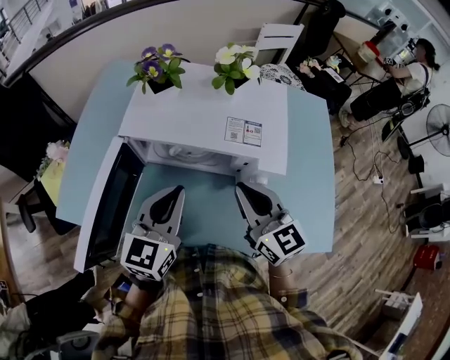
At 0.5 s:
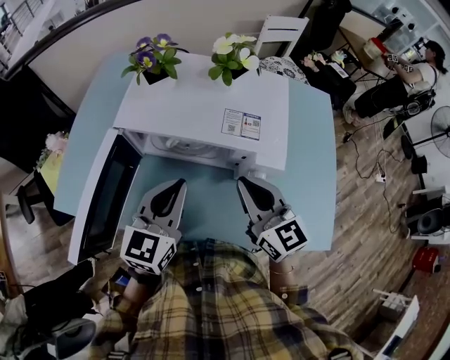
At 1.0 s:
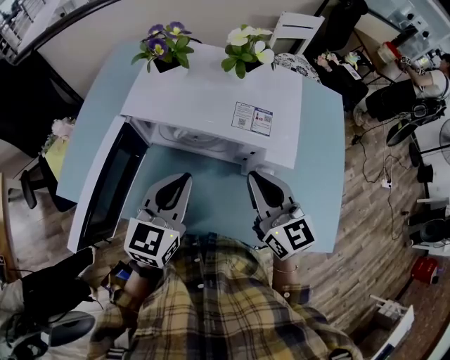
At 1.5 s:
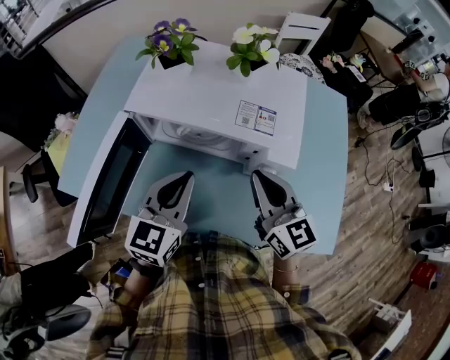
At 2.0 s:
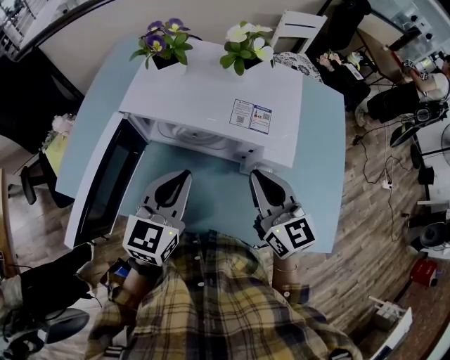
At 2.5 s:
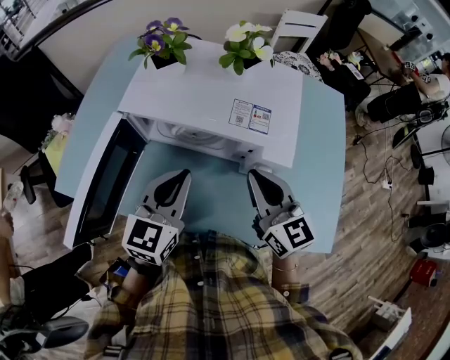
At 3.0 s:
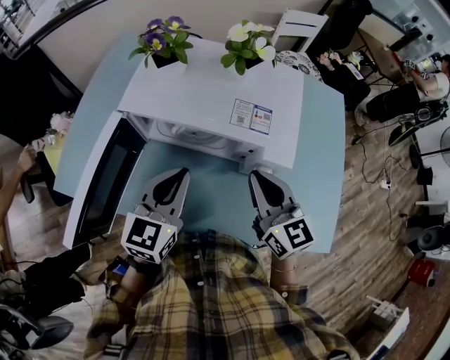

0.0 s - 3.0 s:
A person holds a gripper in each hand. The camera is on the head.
0.0 s - 1.5 s: There are only small adjustments of the grippers.
1.5 s - 3.0 s: The two grippers keep their place.

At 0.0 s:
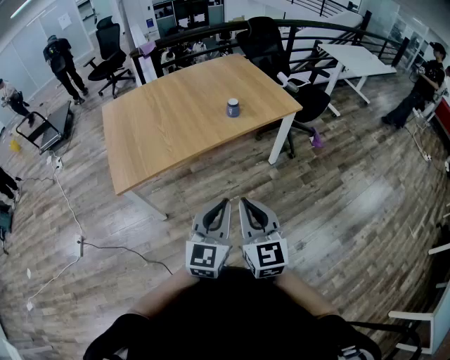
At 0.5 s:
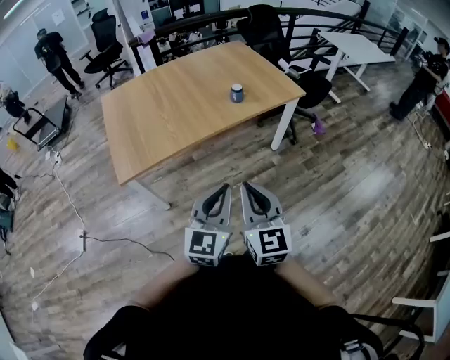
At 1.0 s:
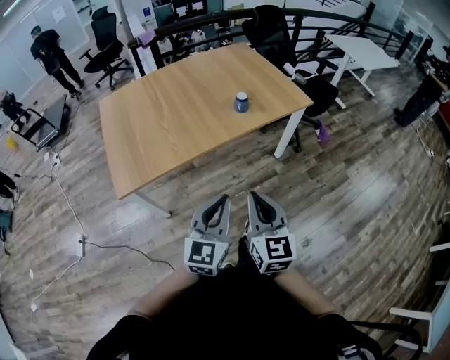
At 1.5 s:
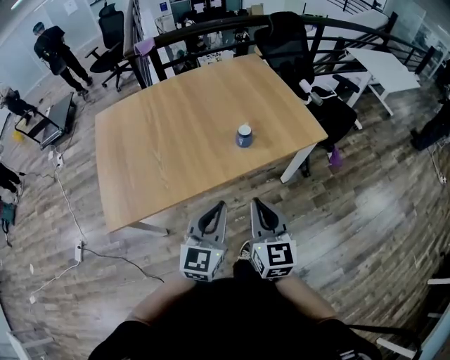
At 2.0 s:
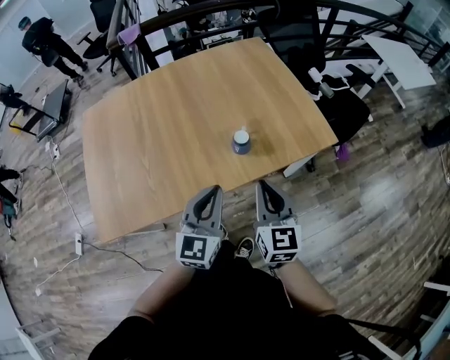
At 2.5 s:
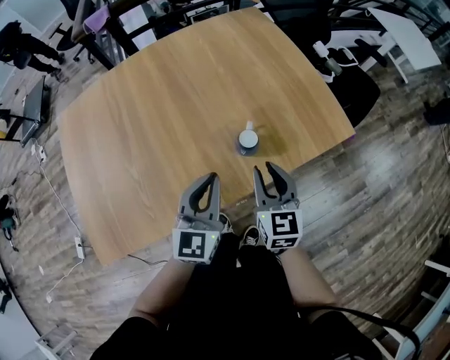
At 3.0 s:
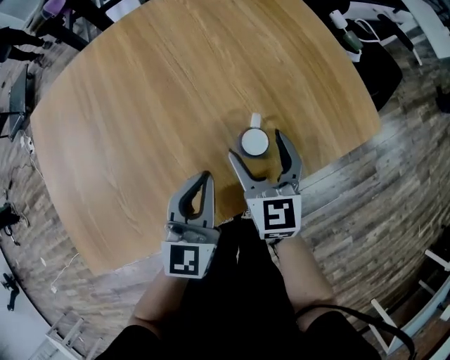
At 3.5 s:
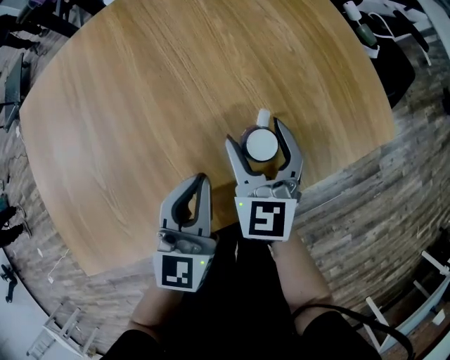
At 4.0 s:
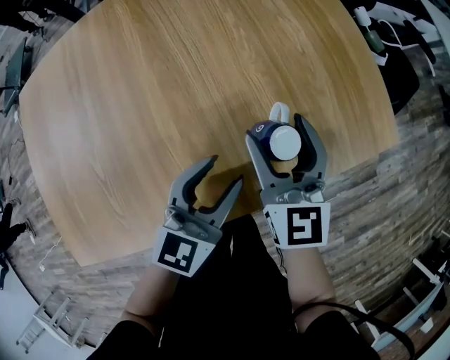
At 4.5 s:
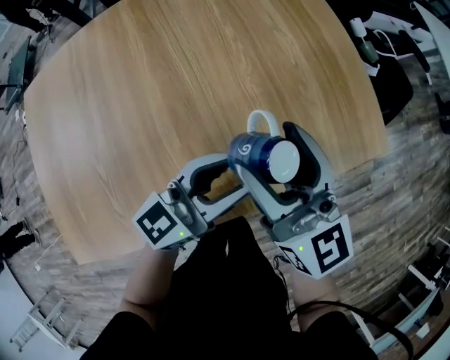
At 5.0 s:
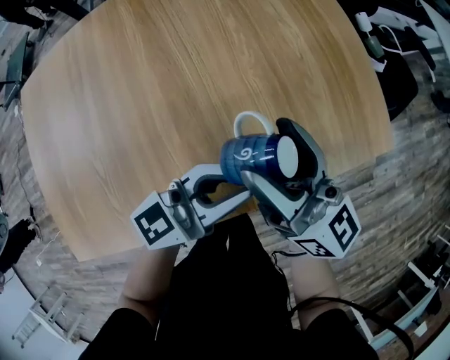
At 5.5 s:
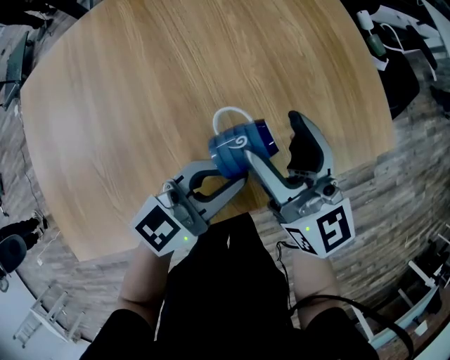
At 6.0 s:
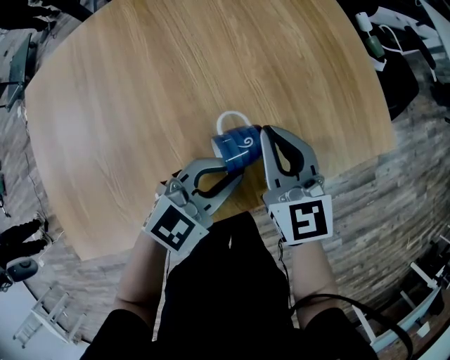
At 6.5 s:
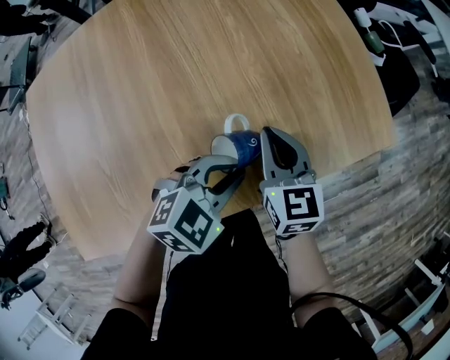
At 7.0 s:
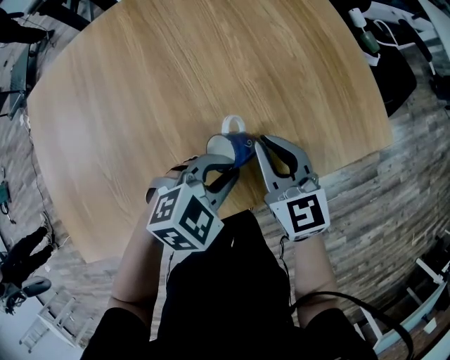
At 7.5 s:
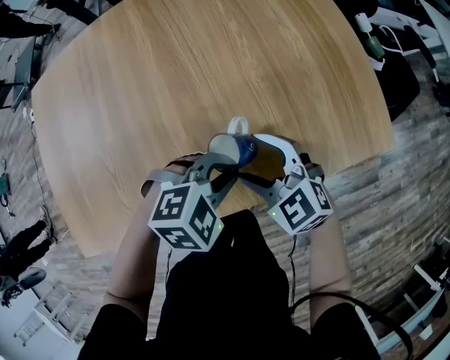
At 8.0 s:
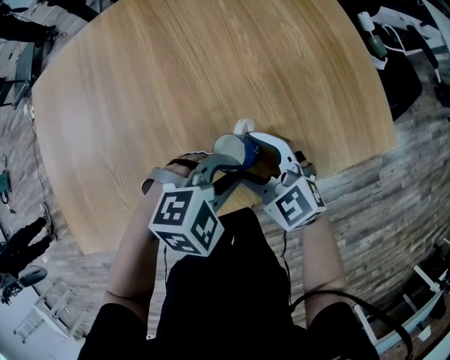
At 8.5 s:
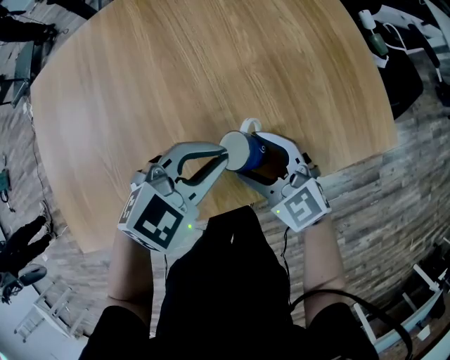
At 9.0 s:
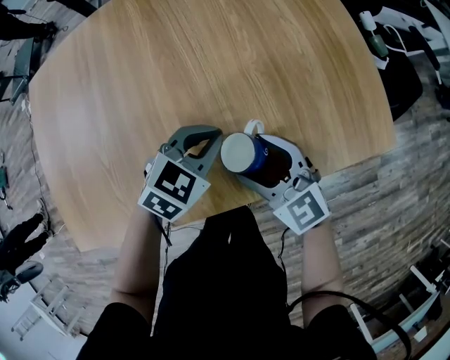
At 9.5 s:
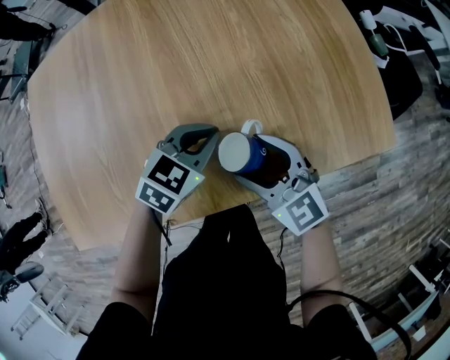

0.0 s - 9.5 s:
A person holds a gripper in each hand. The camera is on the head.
0.0 s - 2.0 s: The two grippers travel together, forward, some 50 cm.
2.0 s - 4.0 s: The left gripper heads downward and forward, covering some 30 cm, and opens up; the right gripper is displaced forward and downward by roughly 35 cm, and opens its fingers.
4.0 s - 5.5 s: The right gripper is displaced upward by approximately 5 cm, and rotates approximately 20 degrees, while the left gripper swivels roughly 30 degrees, and closes its fingers.
5.5 s - 7.5 s: The left gripper tilts its fingers roughly 50 degrees downward. The right gripper heads downward, covering some 10 cm, points its fingers some 30 degrees further downward, and closes and opens again.
7.5 s - 9.5 s: The left gripper shifts by some 10 cm, and rotates some 40 degrees.

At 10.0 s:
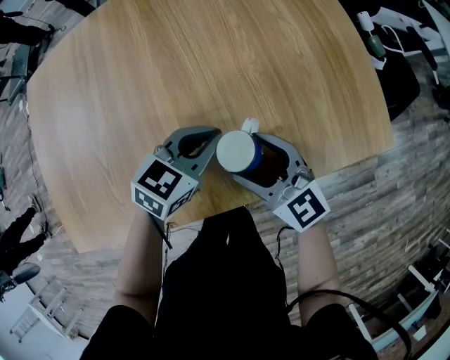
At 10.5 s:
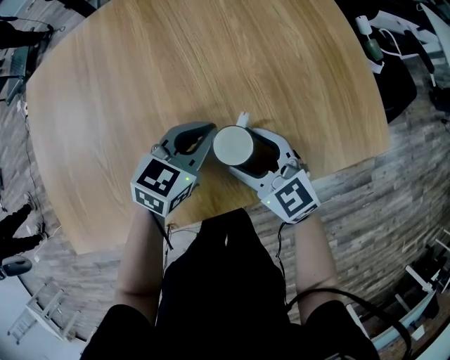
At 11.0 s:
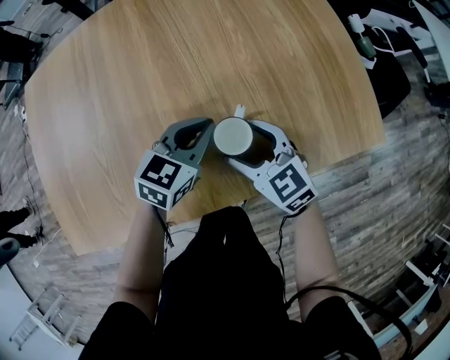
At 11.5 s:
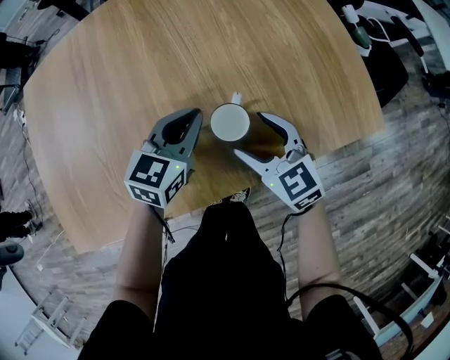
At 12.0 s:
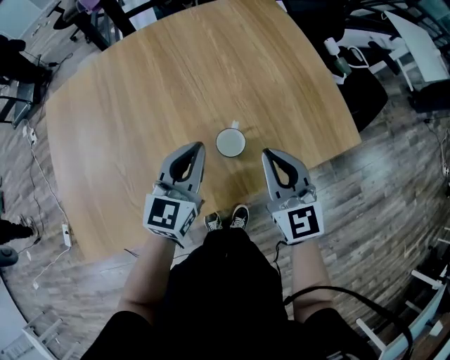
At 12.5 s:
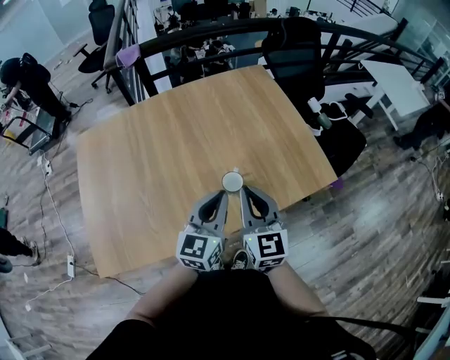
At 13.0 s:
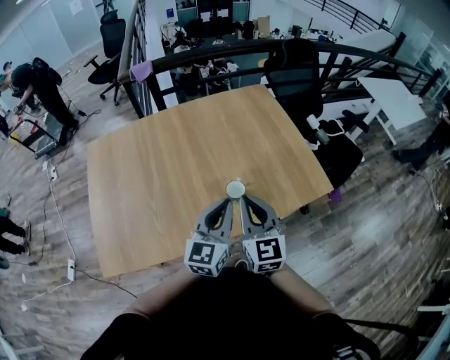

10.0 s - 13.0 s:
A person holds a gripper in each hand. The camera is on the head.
10.0 s - 11.5 s: The grippers stay close to where they were, moving slightly.
11.5 s - 13.0 s: The left gripper moves upward and backward, approximately 30 cm, and rotates about 30 degrees, while the right gripper shifts approximately 30 cm upward, swivels approximately 40 degrees, and closes its fingers.

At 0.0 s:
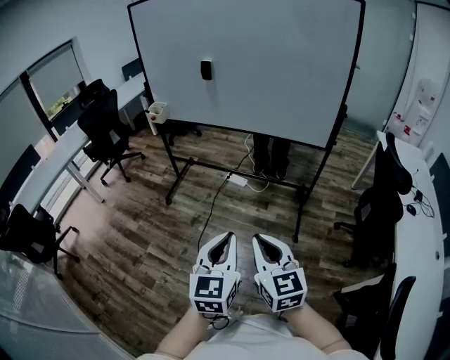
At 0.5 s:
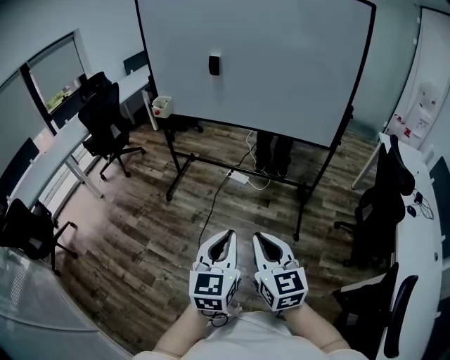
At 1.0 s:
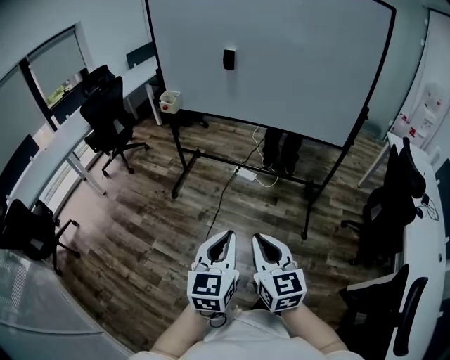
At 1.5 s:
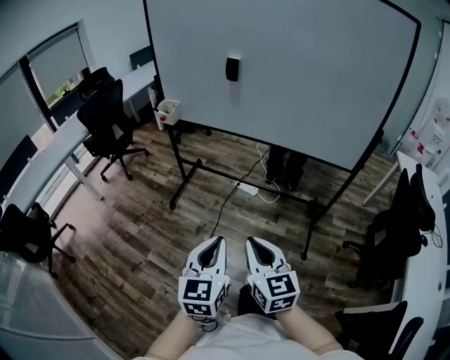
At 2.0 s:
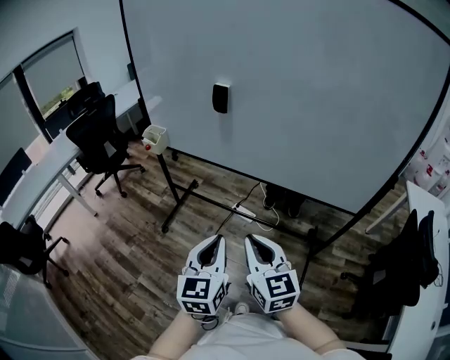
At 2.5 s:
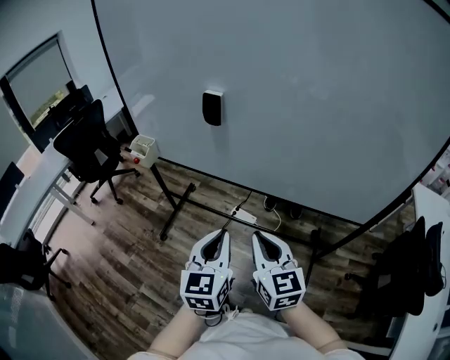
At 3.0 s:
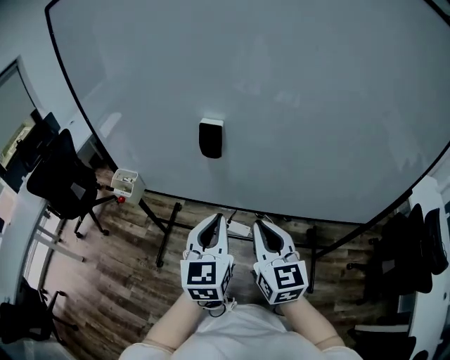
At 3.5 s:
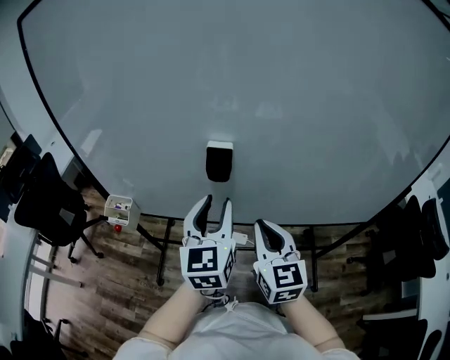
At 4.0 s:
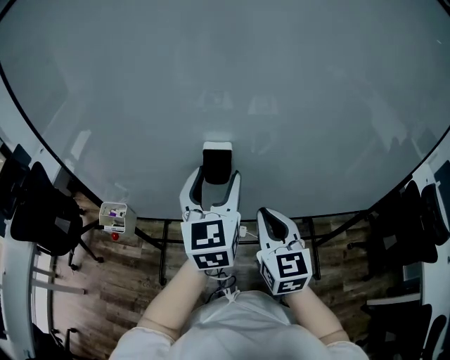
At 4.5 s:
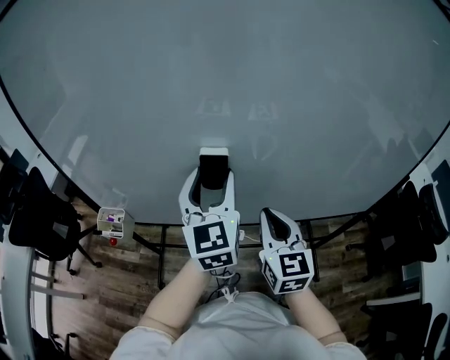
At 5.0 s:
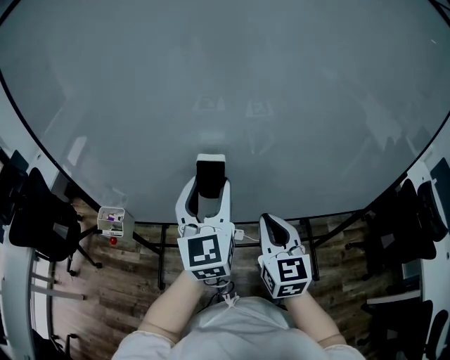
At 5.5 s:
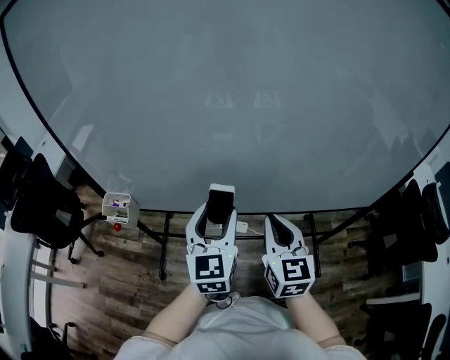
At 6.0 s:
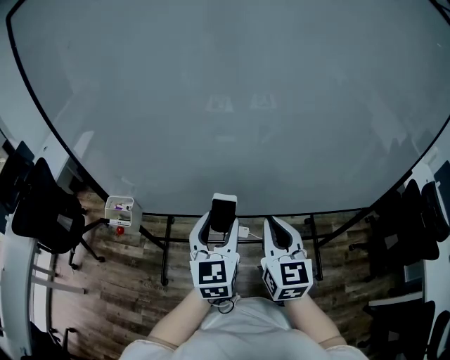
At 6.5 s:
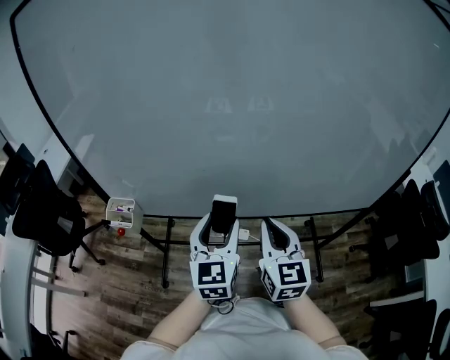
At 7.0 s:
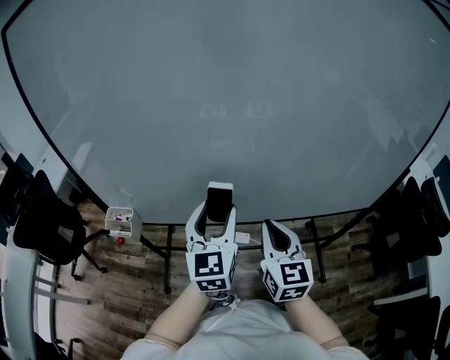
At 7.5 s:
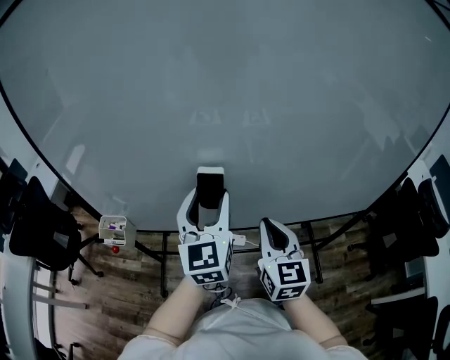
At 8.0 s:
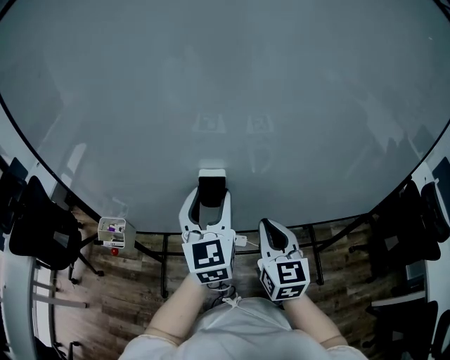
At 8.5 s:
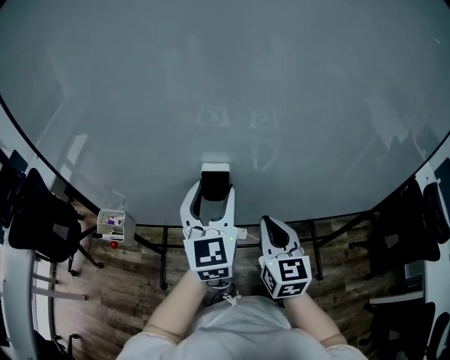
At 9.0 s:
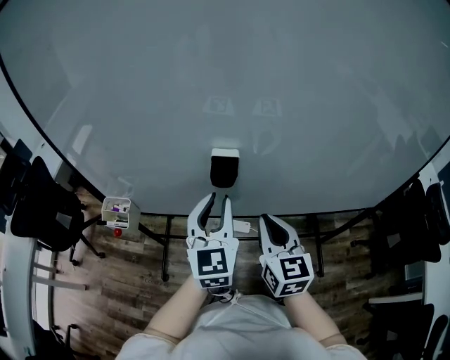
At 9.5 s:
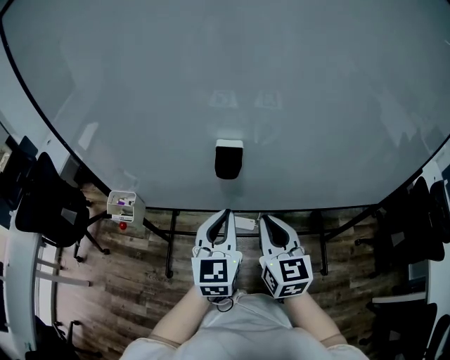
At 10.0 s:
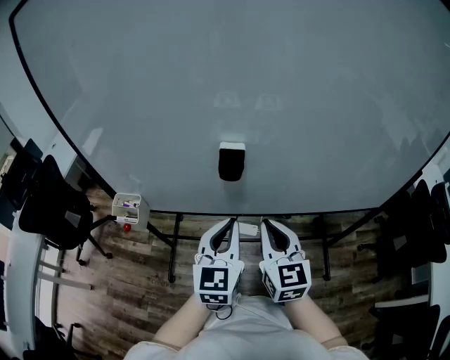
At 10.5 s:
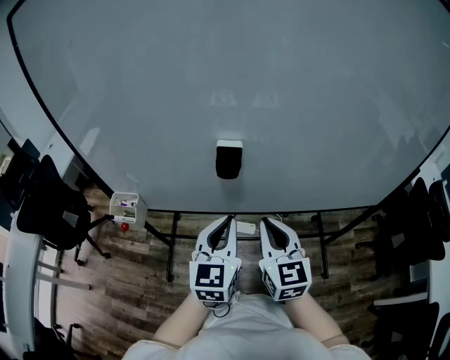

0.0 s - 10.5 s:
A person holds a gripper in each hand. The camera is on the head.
0.0 s - 2.0 s: Both grippers travel together forward, roughly 35 cm.
2.0 s - 4.0 s: Both grippers travel together forward, roughly 35 cm. The right gripper turns by about 30 degrees. The left gripper opens its fingers.
4.0 s - 6.5 s: The left gripper shifts approximately 15 cm downward and backward.
6.5 s - 8.5 s: The right gripper is displaced forward by about 5 cm; the left gripper heads forward and upward, covering approximately 10 cm.
8.5 s - 10.5 s: The left gripper heads backward and downward, covering roughly 15 cm, and closes. Meanwhile the right gripper is displaced backward by about 5 cm.
